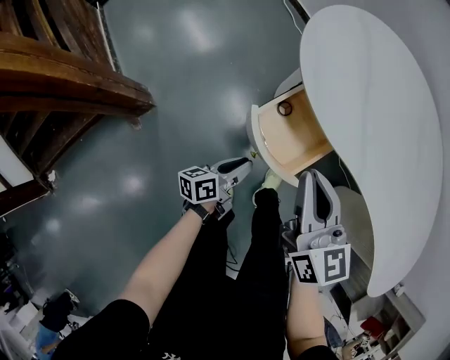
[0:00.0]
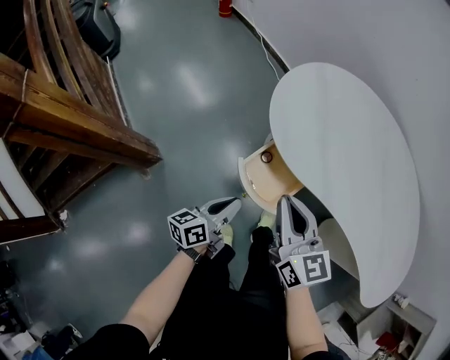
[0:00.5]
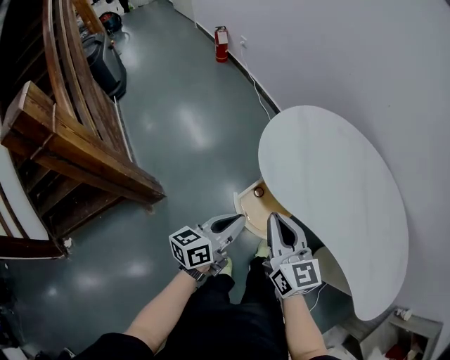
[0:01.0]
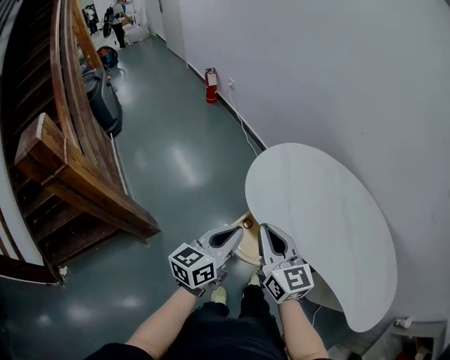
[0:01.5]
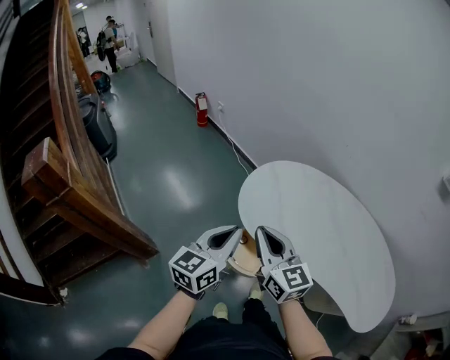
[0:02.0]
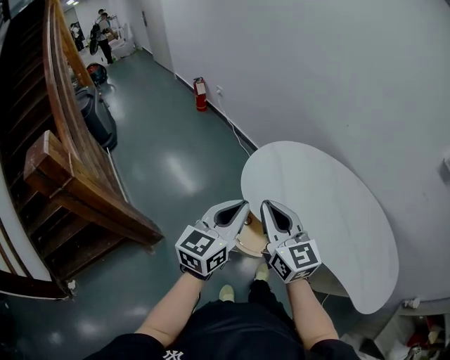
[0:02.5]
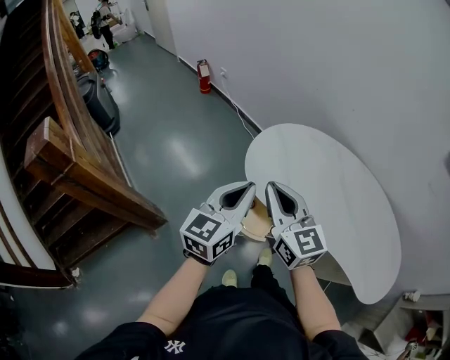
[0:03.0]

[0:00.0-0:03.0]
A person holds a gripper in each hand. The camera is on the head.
0:00.0 to 0:01.5: The left gripper shifts approximately 40 cm upward, and turns by approximately 40 degrees. Meanwhile the right gripper shifts about 20 cm upward.
0:01.5 to 0:03.0: Both grippers travel together upward, roughly 10 cm.

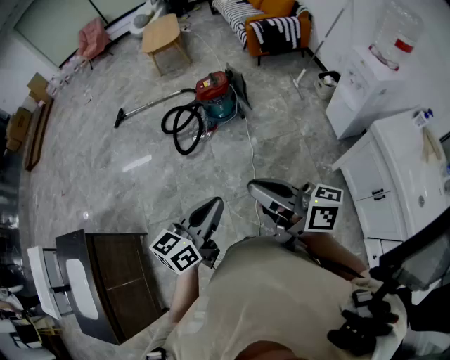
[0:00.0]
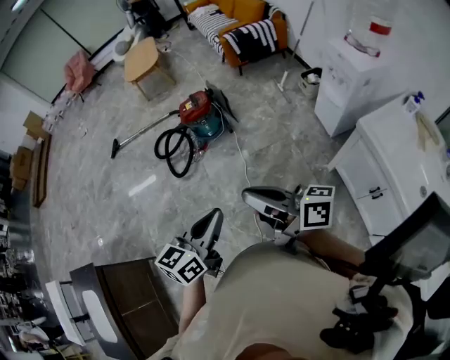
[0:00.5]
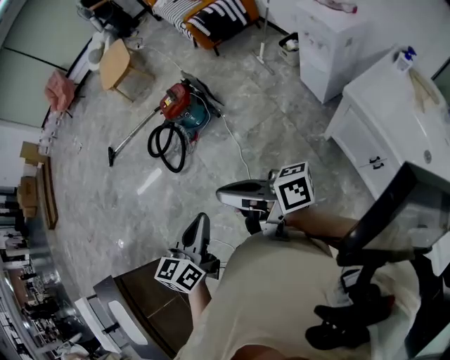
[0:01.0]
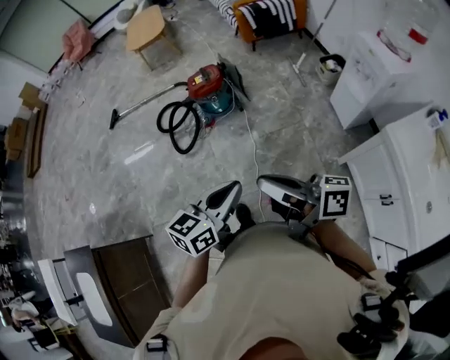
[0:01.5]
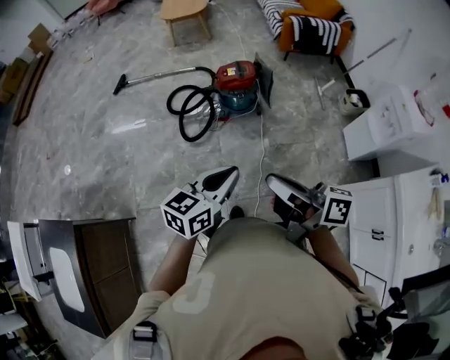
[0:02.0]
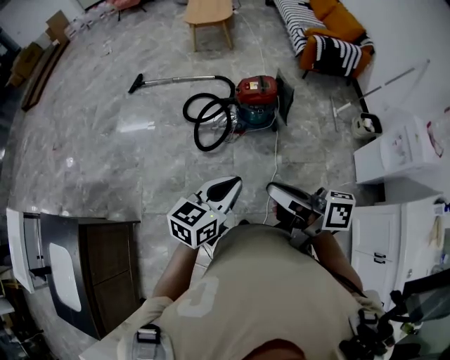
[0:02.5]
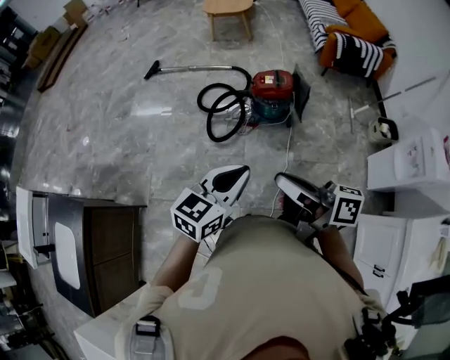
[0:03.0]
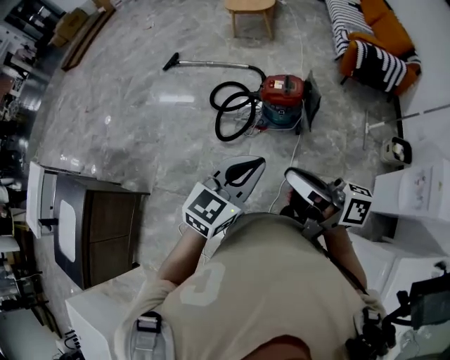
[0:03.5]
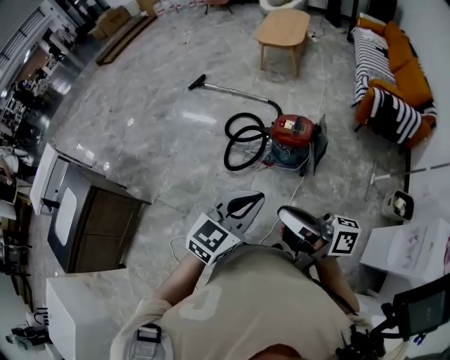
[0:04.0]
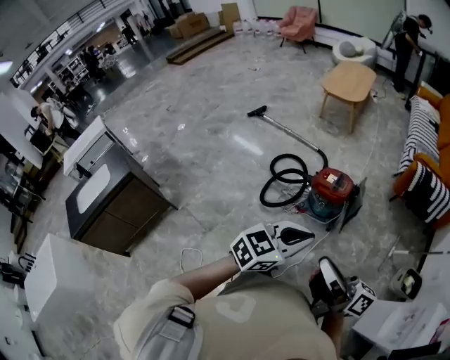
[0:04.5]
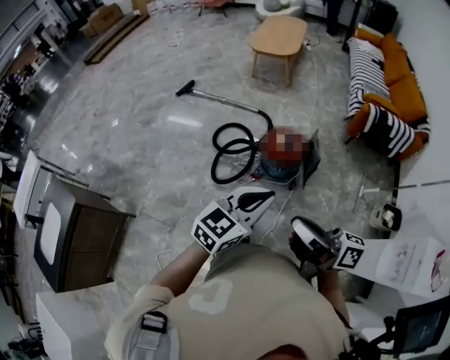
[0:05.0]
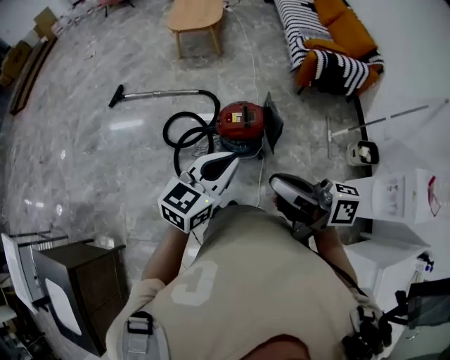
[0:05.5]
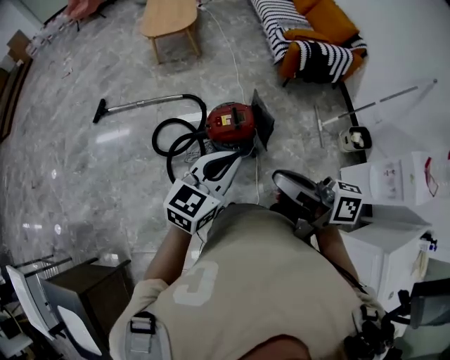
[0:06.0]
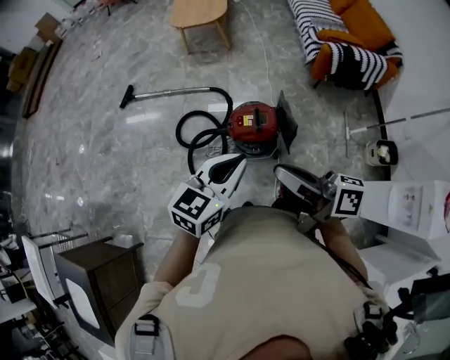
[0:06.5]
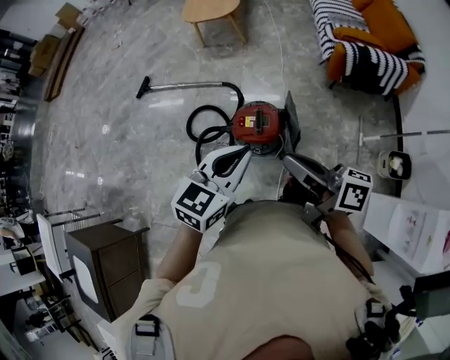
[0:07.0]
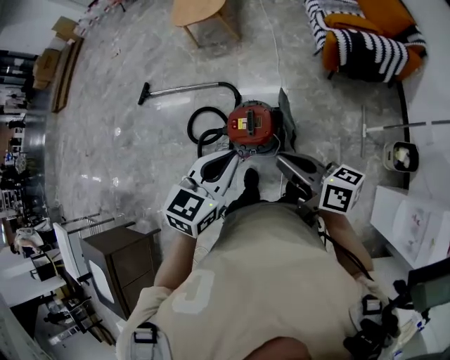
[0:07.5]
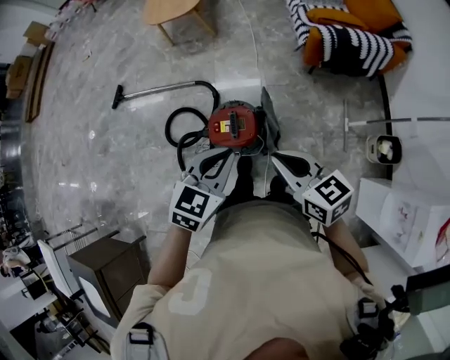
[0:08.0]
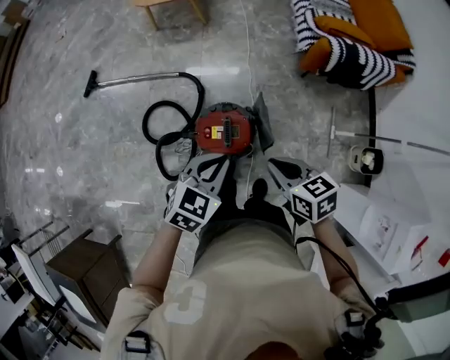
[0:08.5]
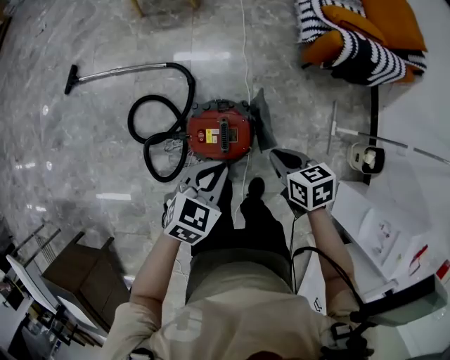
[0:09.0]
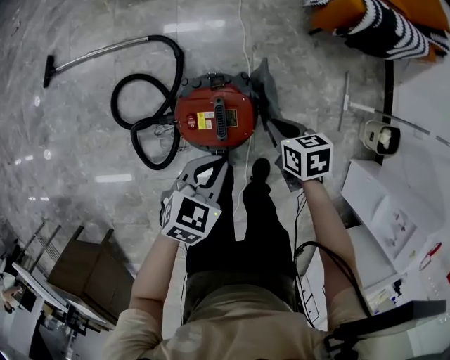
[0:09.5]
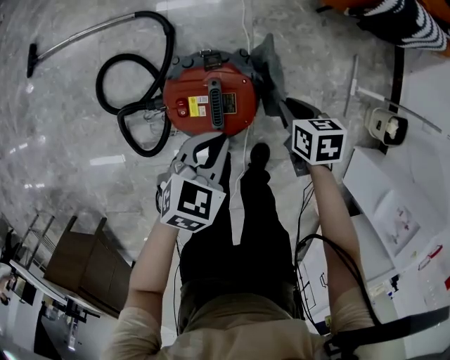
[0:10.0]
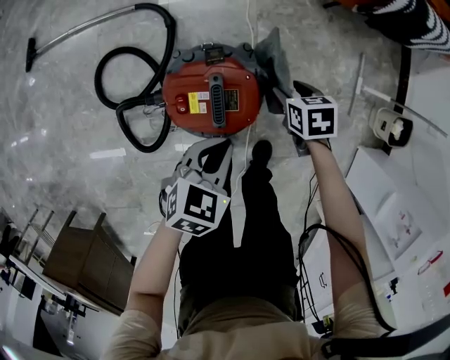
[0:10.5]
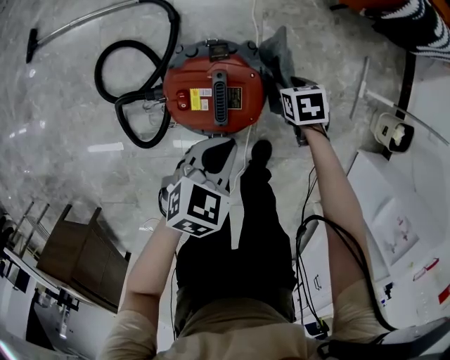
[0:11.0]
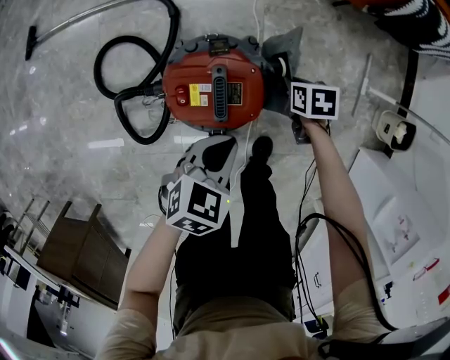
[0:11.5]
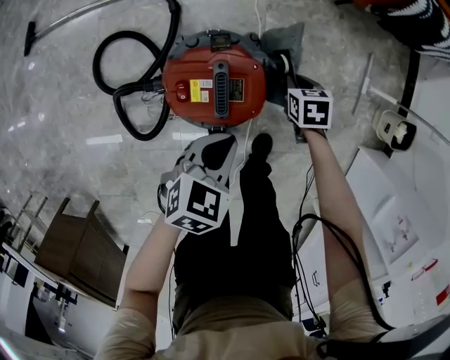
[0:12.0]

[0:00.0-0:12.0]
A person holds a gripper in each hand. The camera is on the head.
0:00.0 to 0:02.0: The two grippers go about 20 cm forward.
0:02.0 to 0:04.0: The left gripper changes place by roughly 25 cm, and rotates some 30 degrees. The right gripper changes place by approximately 25 cm, and changes its angle by approximately 30 degrees.
0:04.0 to 0:06.0: The left gripper moves about 25 cm, and rotates about 30 degrees, while the right gripper changes place by roughly 25 cm, and rotates approximately 30 degrees.
0:06.0 to 0:08.0: Both grippers move to the right, forward and downward, about 30 cm. The right gripper turns by roughly 40 degrees. The left gripper turns by about 30 degrees.
0:08.0 to 0:10.0: The left gripper heads downward, covering about 35 cm. Meanwhile the right gripper shifts about 50 cm downward and forward, and tilts its fingers about 40 degrees downward.
0:10.0 to 0:12.0: The right gripper is displaced downward by roughly 10 cm, and opens, then closes again. The left gripper moves about 5 cm.

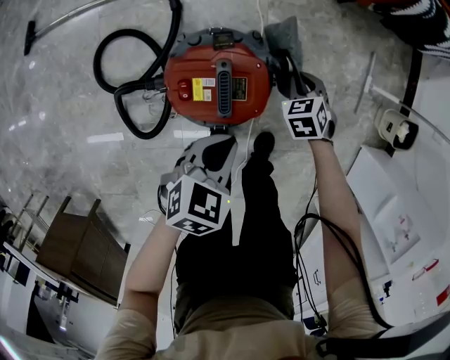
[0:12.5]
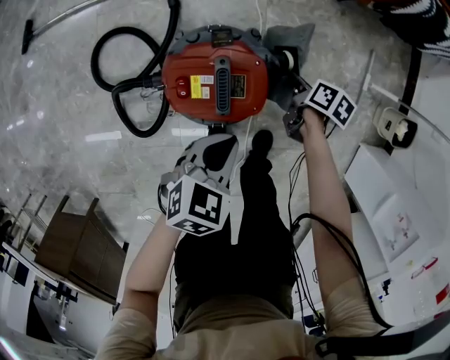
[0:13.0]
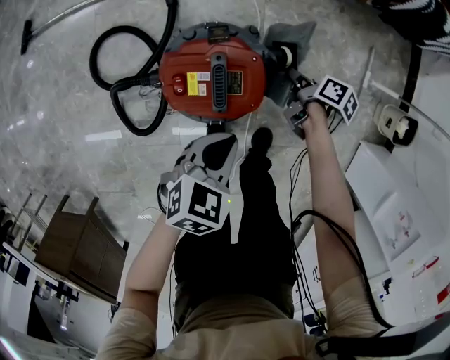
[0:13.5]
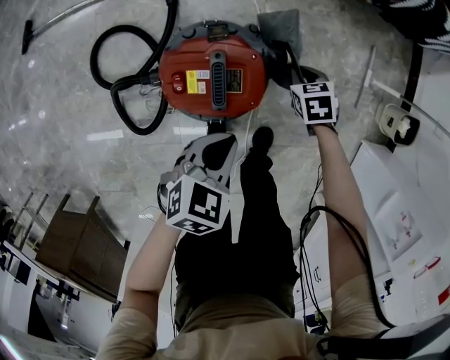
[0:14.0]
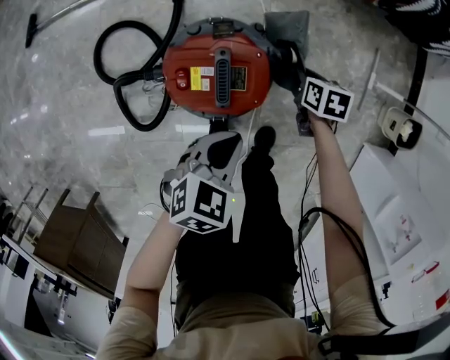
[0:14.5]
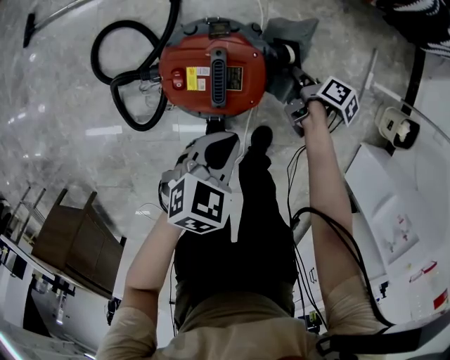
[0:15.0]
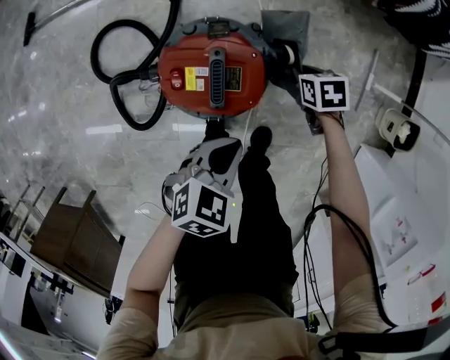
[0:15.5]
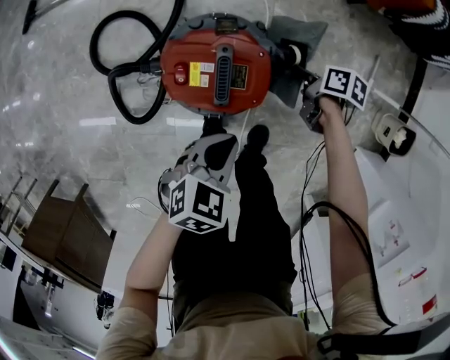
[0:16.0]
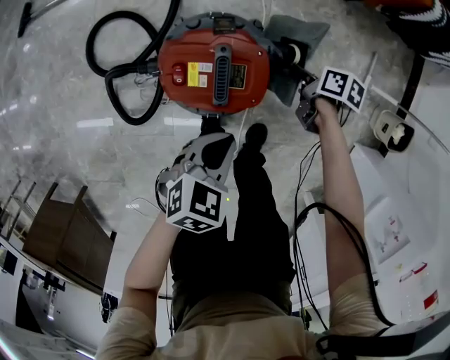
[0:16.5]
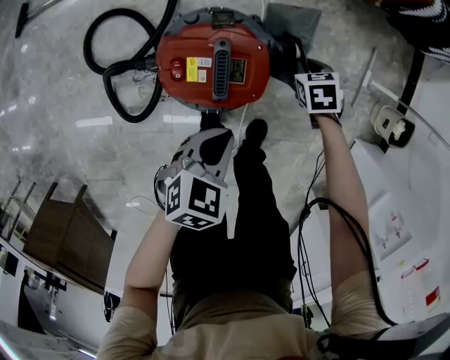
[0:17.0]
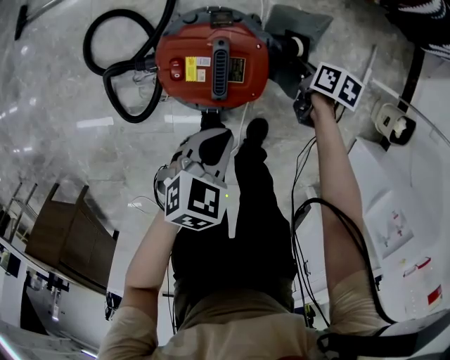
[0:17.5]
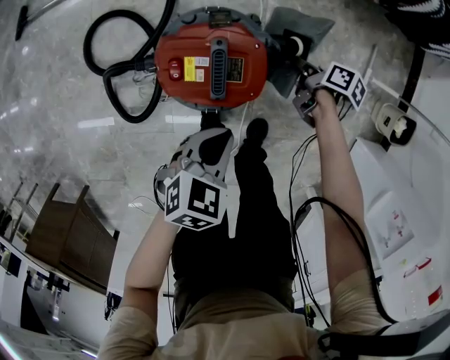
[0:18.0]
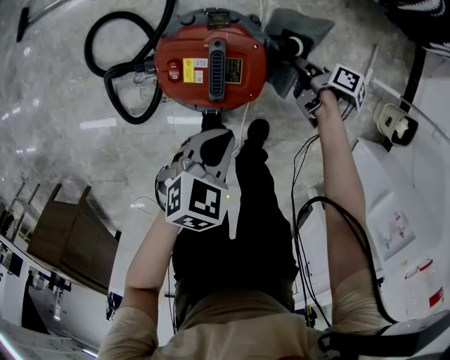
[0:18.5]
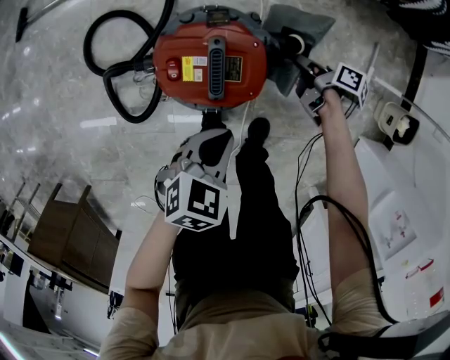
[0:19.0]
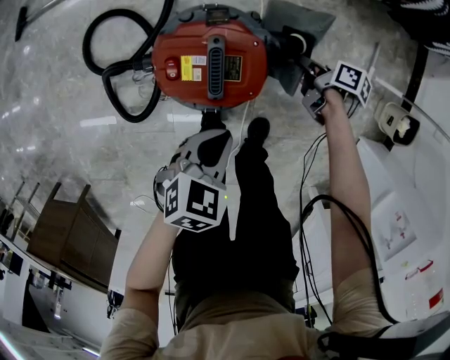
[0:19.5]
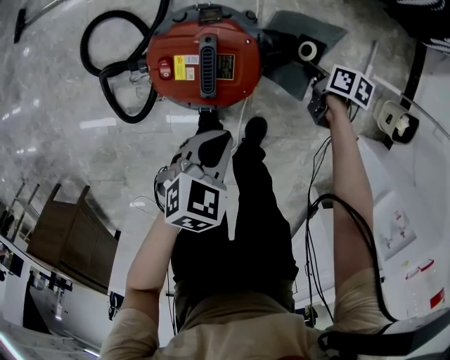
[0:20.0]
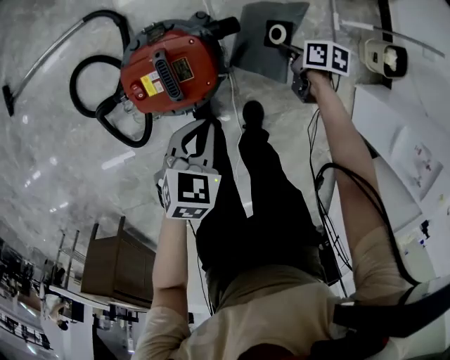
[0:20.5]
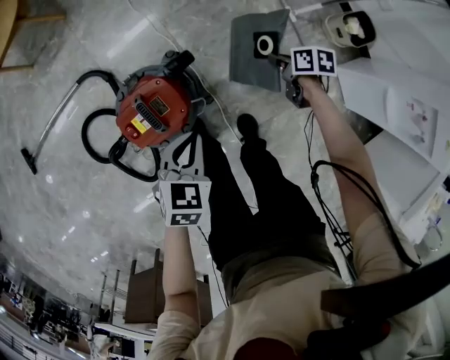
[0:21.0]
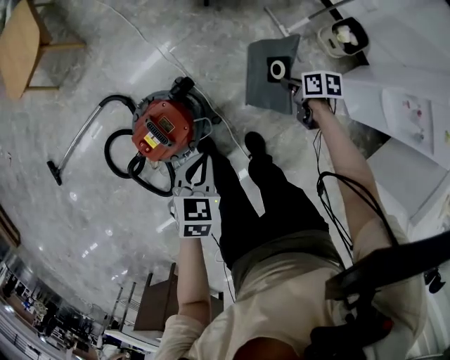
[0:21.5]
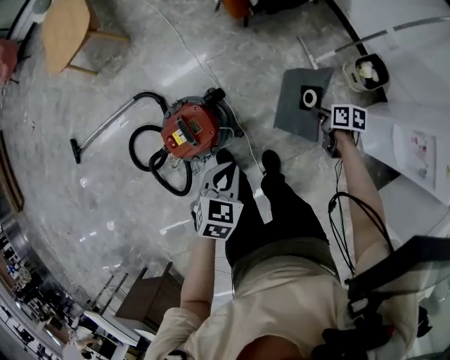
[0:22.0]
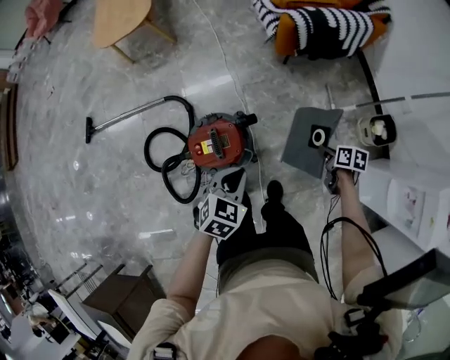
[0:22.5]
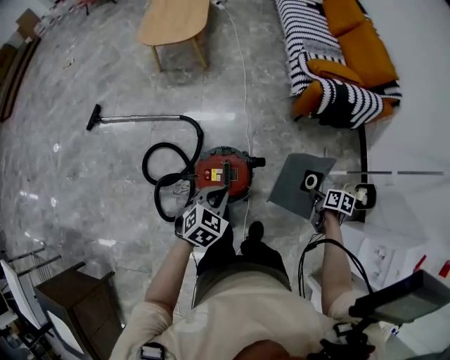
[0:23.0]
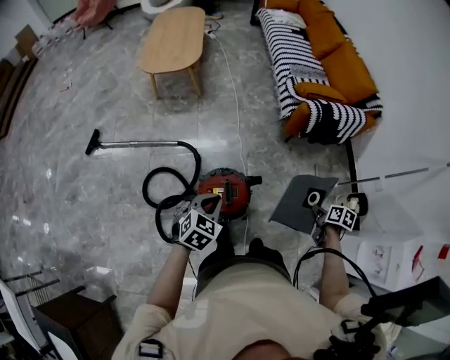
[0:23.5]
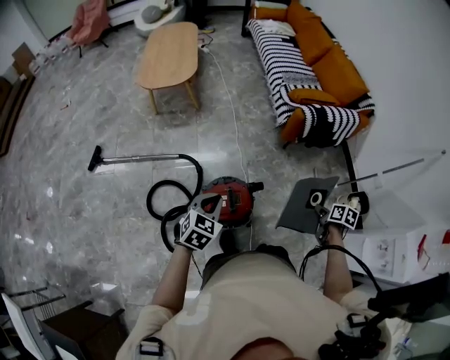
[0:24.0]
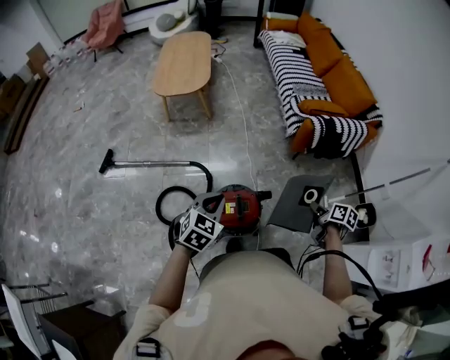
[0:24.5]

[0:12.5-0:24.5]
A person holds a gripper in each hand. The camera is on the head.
0:12.5 to 0:14.5: The right gripper changes its angle by roughly 40 degrees.
0:14.5 to 0:16.5: The right gripper rotates approximately 30 degrees.
0:16.5 to 0:18.5: The right gripper rotates about 30 degrees.
0:18.5 to 0:20.5: The right gripper moves to the right, some 10 cm, and rotates some 30 degrees.
0:20.5 to 0:22.5: The right gripper goes roughly 25 cm upward and to the right, while the left gripper travels upward by about 20 cm.
0:22.5 to 0:24.5: The right gripper is displaced upward and to the left by roughly 25 cm; the left gripper heads to the left and upward, covering about 25 cm.
